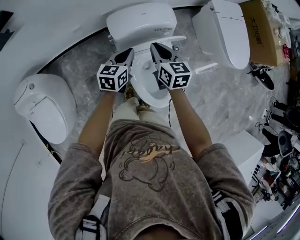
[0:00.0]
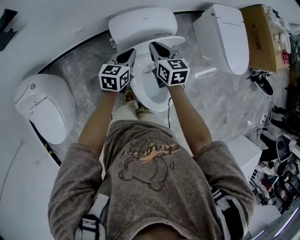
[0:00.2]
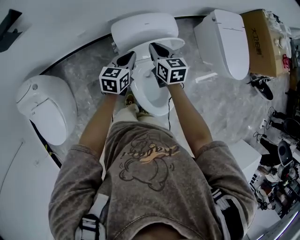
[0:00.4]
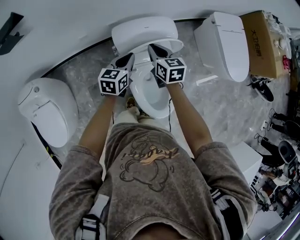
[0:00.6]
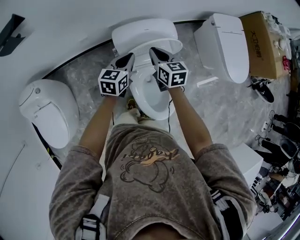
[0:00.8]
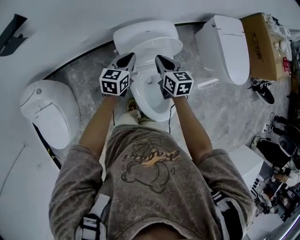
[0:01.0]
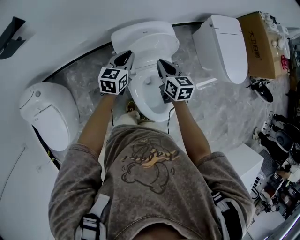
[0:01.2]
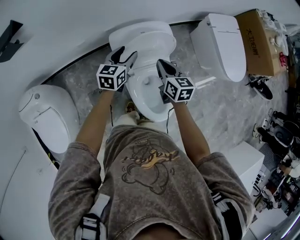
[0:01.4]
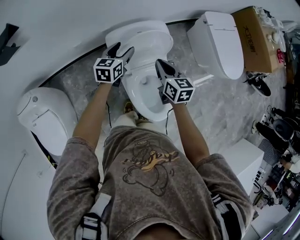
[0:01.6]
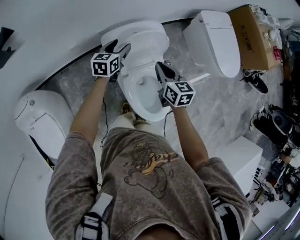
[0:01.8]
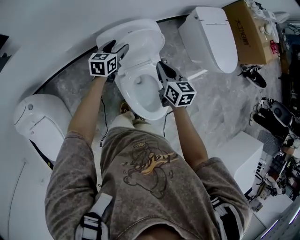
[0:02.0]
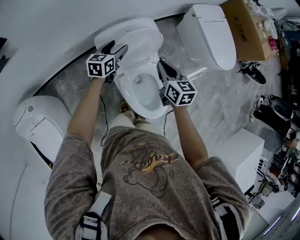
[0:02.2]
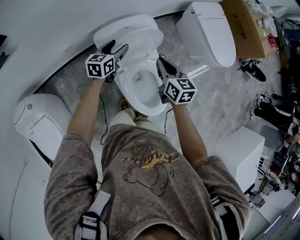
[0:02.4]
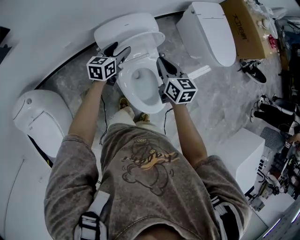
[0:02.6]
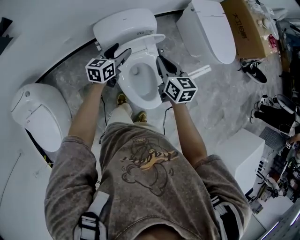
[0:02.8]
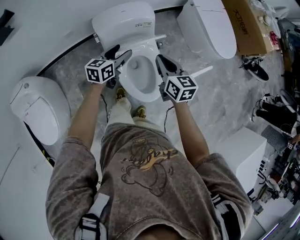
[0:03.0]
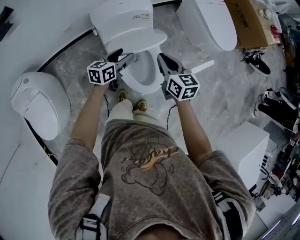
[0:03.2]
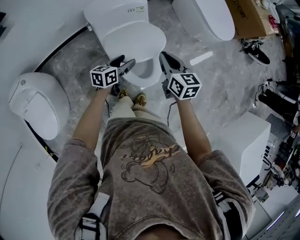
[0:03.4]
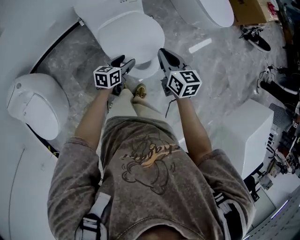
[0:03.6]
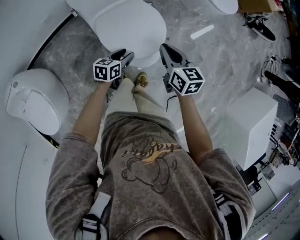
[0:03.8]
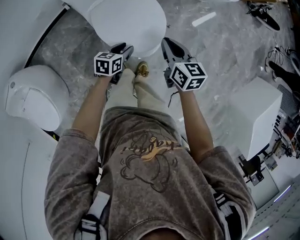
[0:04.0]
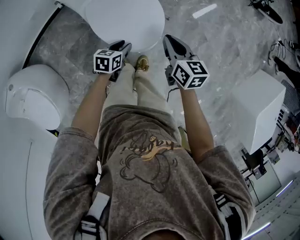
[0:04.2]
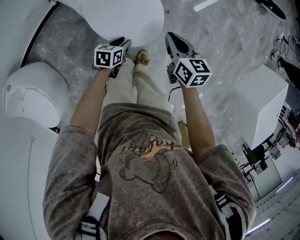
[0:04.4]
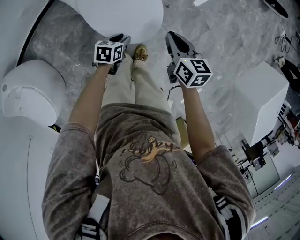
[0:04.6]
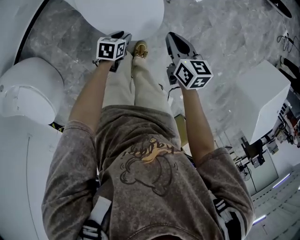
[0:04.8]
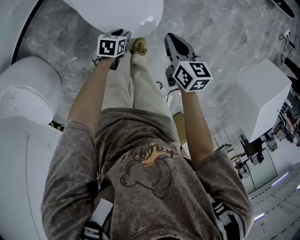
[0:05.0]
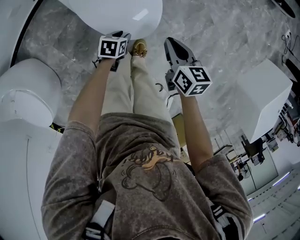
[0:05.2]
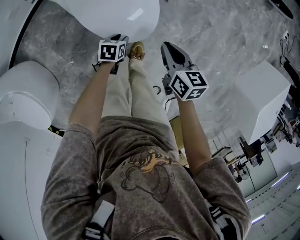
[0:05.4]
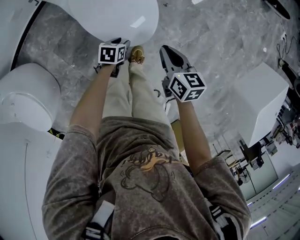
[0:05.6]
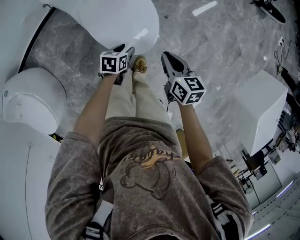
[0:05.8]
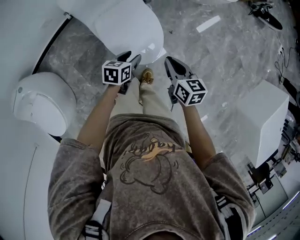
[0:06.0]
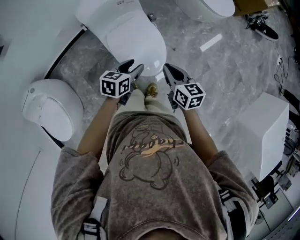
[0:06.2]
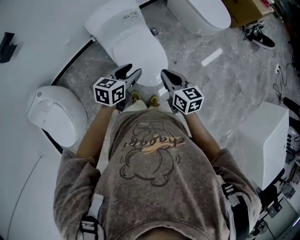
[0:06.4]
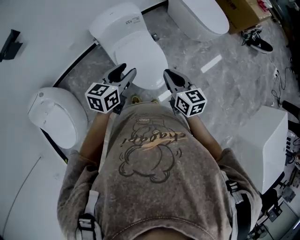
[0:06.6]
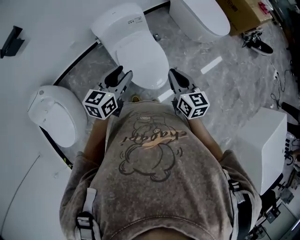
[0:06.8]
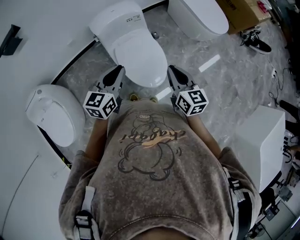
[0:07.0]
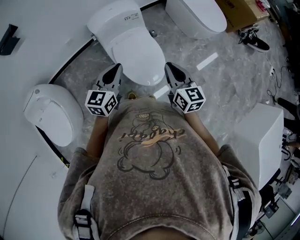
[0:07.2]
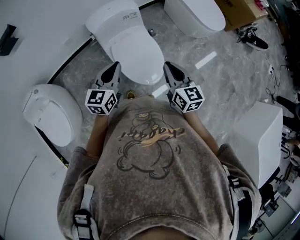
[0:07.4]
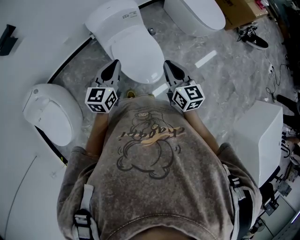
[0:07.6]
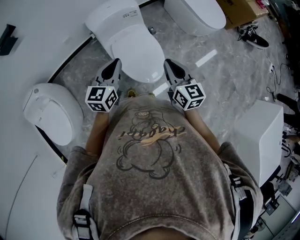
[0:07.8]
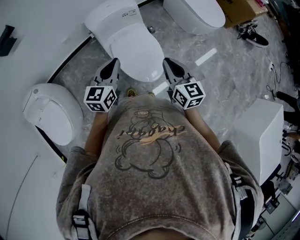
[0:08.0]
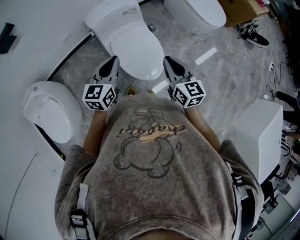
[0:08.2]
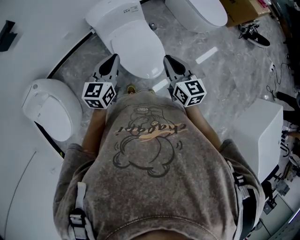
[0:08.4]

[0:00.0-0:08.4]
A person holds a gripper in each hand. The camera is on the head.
0:00.0 to 0:01.4: The left gripper moves forward, roughly 5 cm, and opens.
0:01.4 to 0:02.8: Both grippers travel together backward and to the right, about 10 cm.
0:02.8 to 0:04.2: The right gripper is displaced backward, to the right and downward by roughly 30 cm; the left gripper shifts approximately 35 cm backward, downward and to the right, turns by some 30 degrees, and closes up.
0:04.2 to 0:05.6: The left gripper is displaced downward by approximately 15 cm, while the right gripper travels downward and backward by about 10 cm.
0:05.6 to 0:07.0: The left gripper travels upward by approximately 50 cm, tips its fingers upward by some 40 degrees, and closes its fingers. The right gripper heads upward, covering approximately 30 cm, and changes its angle by about 30 degrees.
0:07.0 to 0:08.4: There are only small adjustments of the grippers.

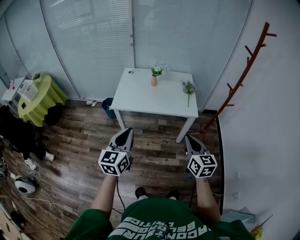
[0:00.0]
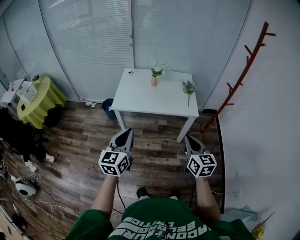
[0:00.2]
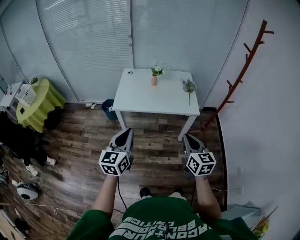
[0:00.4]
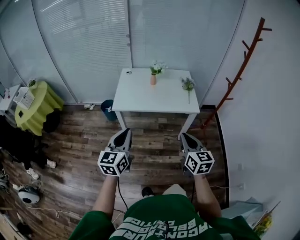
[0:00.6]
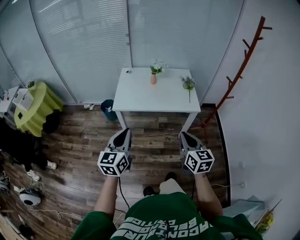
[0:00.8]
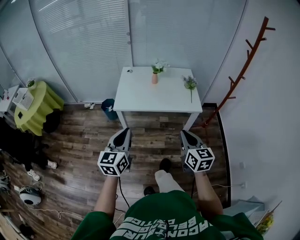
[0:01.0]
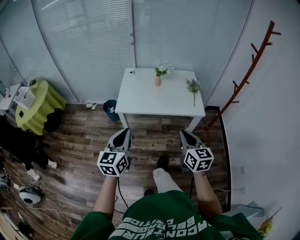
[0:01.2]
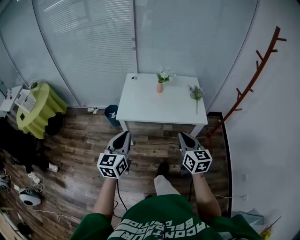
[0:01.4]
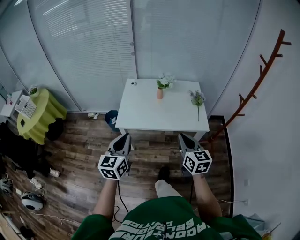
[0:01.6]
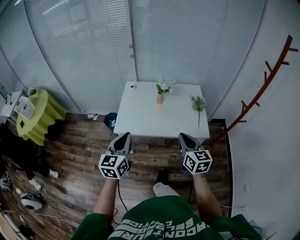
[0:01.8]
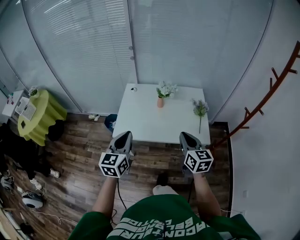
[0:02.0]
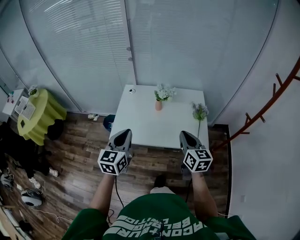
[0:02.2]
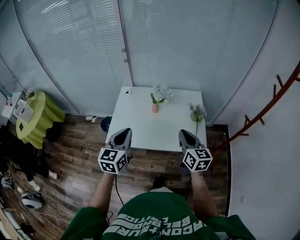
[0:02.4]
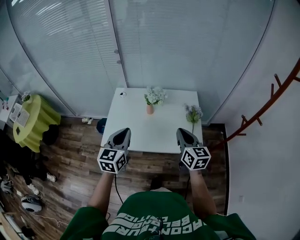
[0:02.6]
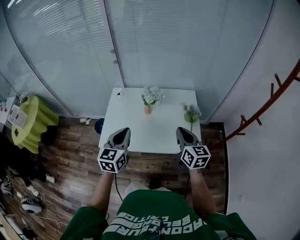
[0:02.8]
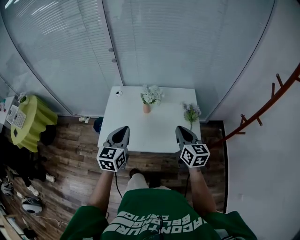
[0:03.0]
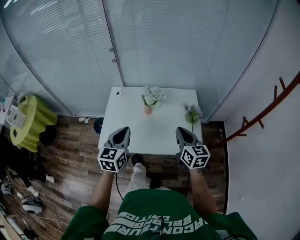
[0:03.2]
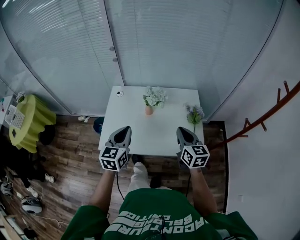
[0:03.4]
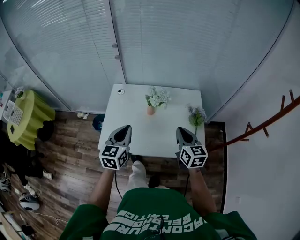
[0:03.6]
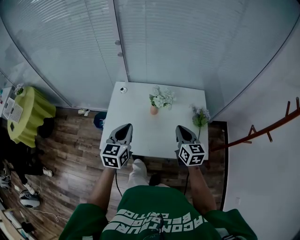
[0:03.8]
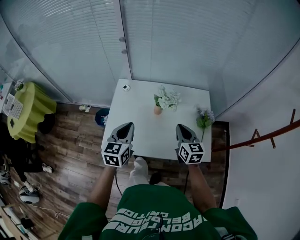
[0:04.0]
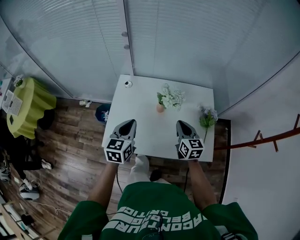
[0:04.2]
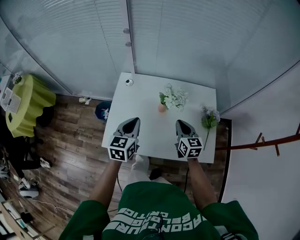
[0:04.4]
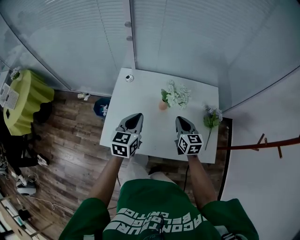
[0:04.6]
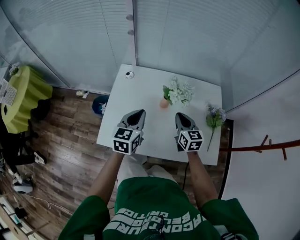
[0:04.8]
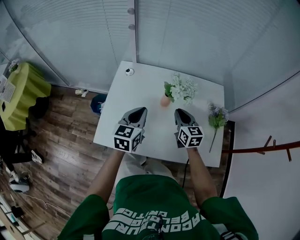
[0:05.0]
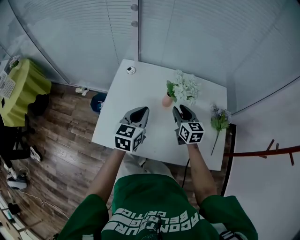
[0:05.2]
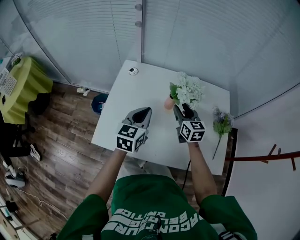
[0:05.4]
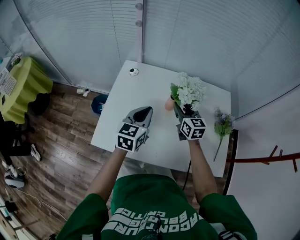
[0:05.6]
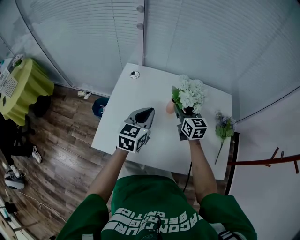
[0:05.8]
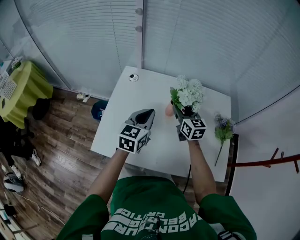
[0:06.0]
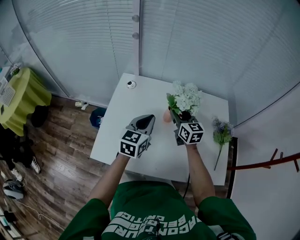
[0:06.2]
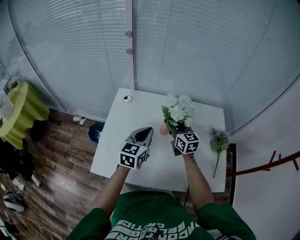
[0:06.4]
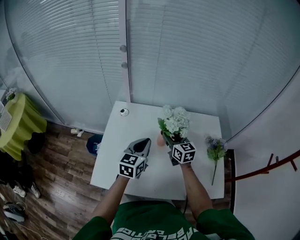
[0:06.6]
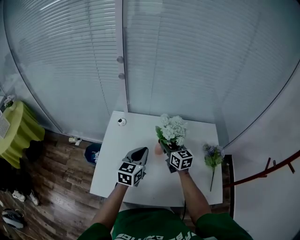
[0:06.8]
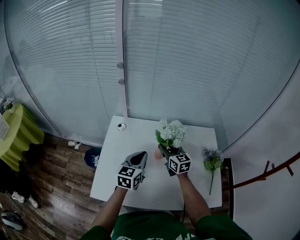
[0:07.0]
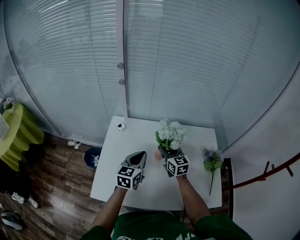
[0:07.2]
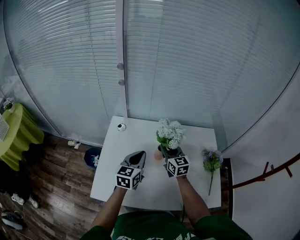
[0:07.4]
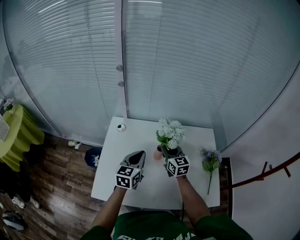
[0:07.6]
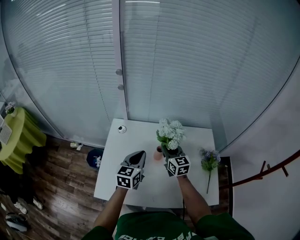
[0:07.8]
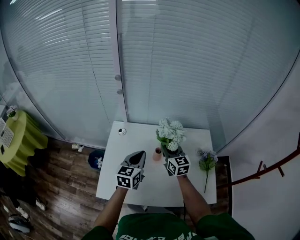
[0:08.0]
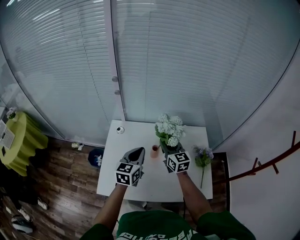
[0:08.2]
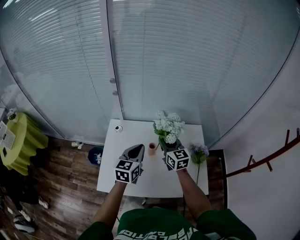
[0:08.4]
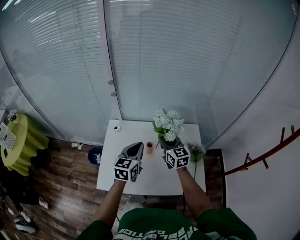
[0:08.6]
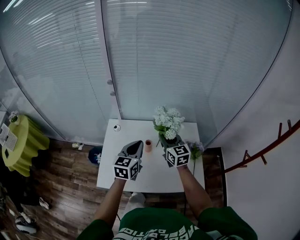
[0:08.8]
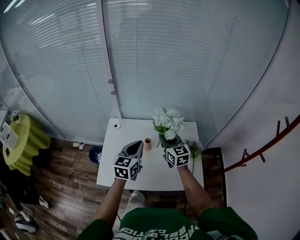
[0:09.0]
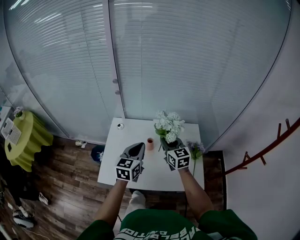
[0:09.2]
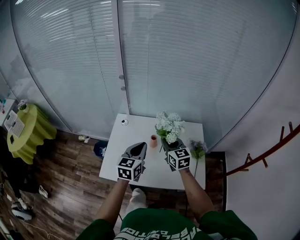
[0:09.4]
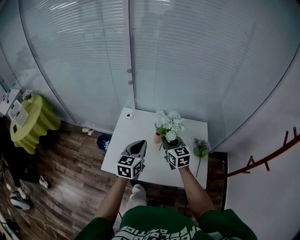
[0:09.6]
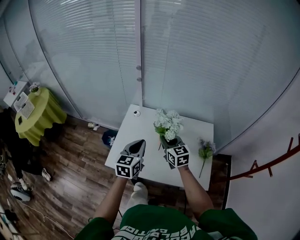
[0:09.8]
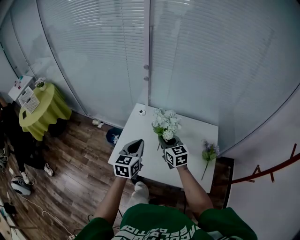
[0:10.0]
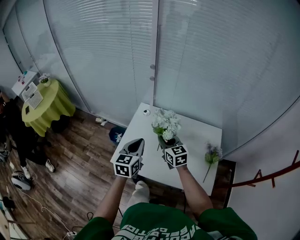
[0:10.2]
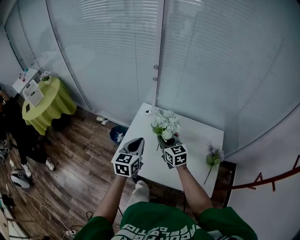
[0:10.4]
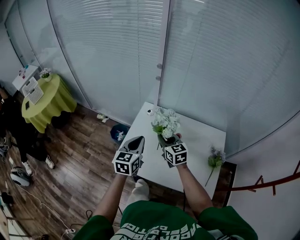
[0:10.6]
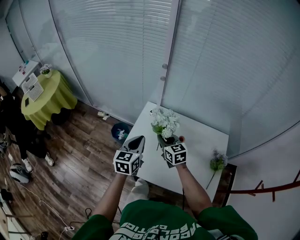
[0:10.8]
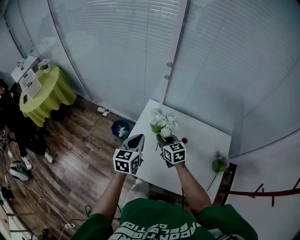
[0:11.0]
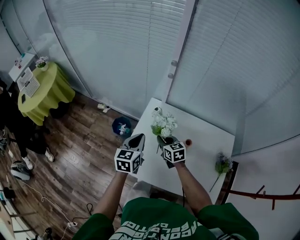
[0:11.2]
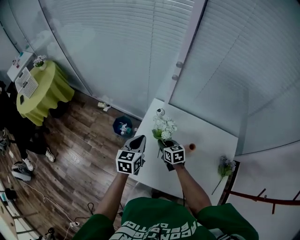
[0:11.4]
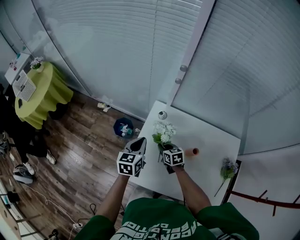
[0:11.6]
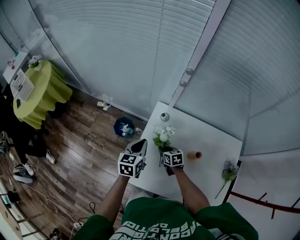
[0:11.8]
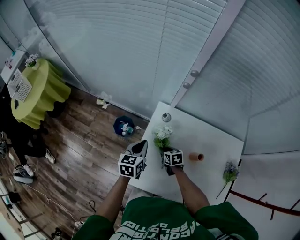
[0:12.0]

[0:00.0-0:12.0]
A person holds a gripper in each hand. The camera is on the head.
0:00.0 to 0:01.6: The two grippers go some 20 cm forward and to the left.
0:01.6 to 0:03.0: The grippers both shift forward and to the right by approximately 30 cm.
0:03.0 to 0:04.4: The two grippers go about 20 cm forward, downward and to the left.
0:04.4 to 0:06.0: The left gripper moves downward and forward, some 15 cm. The right gripper is displaced forward and downward by some 15 cm, and opens.
0:06.0 to 0:07.6: The right gripper closes up.
0:07.6 to 0:09.0: The two grippers go approximately 20 cm upward and backward.
0:09.0 to 0:10.4: The left gripper is displaced to the left by approximately 15 cm. Meanwhile the right gripper moves to the left and downward, some 20 cm, and swivels approximately 20 degrees.
0:10.4 to 0:12.0: The right gripper travels downward and forward by approximately 35 cm, and angles its fingers downward, by some 30 degrees, while the left gripper goes approximately 30 cm forward and downward.

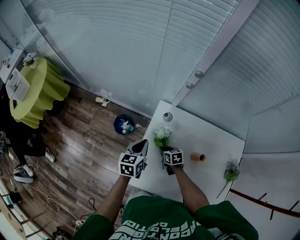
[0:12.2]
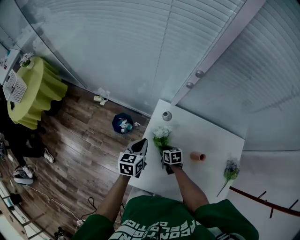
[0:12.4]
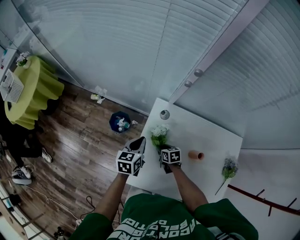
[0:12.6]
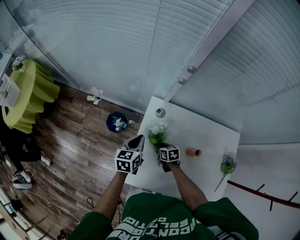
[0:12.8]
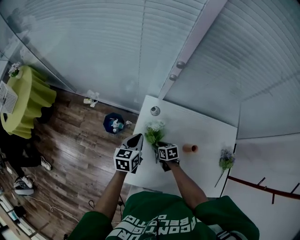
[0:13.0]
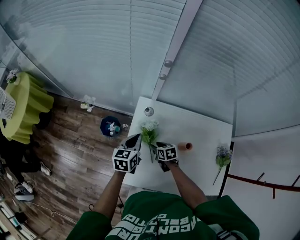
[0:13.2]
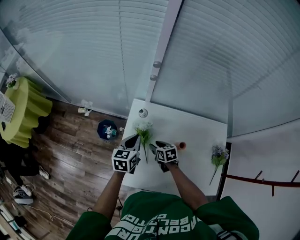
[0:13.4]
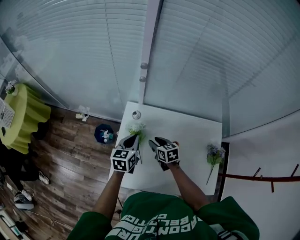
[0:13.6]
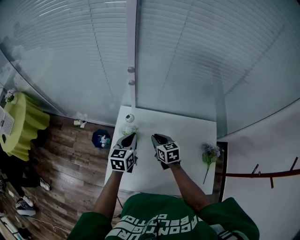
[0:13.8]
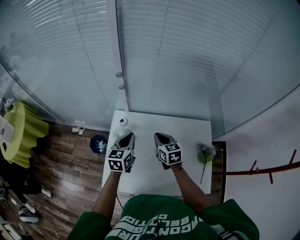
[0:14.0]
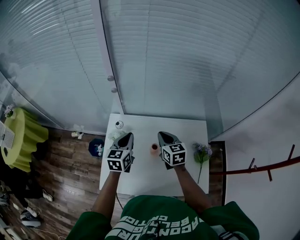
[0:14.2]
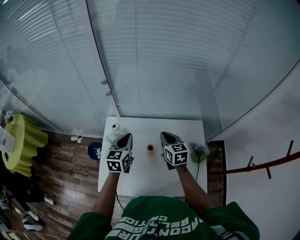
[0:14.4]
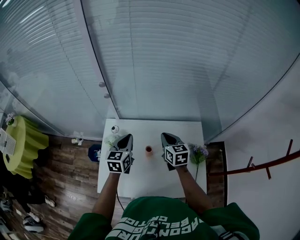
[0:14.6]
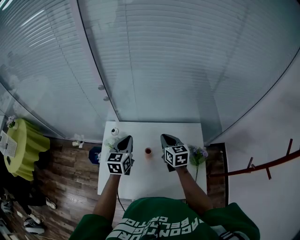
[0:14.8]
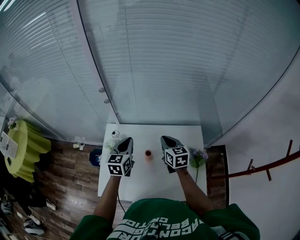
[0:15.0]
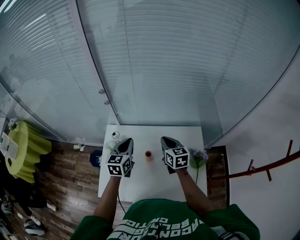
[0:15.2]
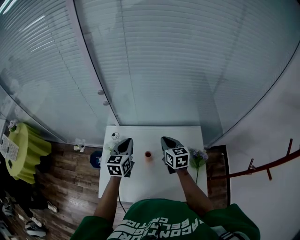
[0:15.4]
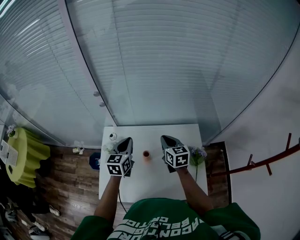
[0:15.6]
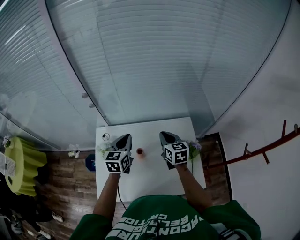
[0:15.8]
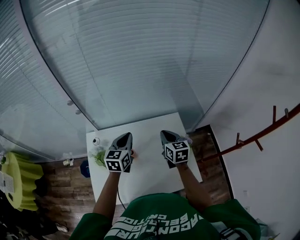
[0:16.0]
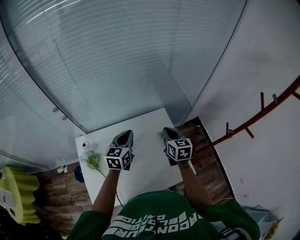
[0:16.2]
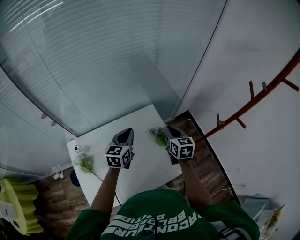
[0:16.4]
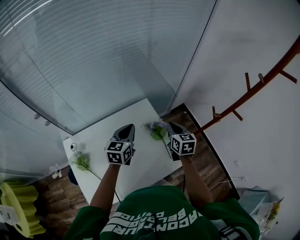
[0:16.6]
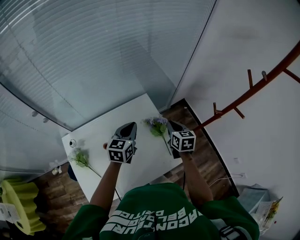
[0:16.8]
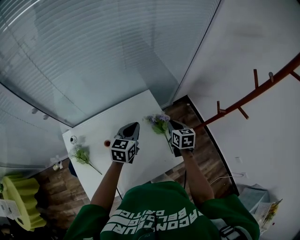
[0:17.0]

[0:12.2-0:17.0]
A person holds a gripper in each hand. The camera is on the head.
0:12.2 to 0:13.8: The right gripper is displaced upward and to the right by approximately 25 cm, and changes its angle by roughly 30 degrees; the left gripper goes about 15 cm to the right and upward.
0:13.8 to 0:15.4: The right gripper travels to the right and upward by approximately 20 cm. The left gripper moves to the right and upward, approximately 15 cm.
0:15.4 to 0:17.0: The left gripper shifts by about 30 cm, and rotates roughly 40 degrees. Meanwhile the right gripper shifts by about 35 cm, and rotates approximately 40 degrees.
